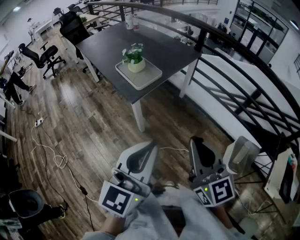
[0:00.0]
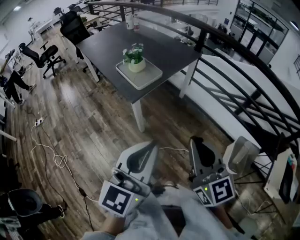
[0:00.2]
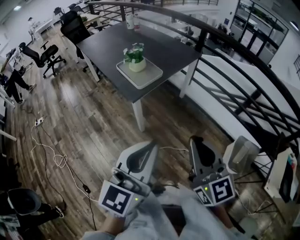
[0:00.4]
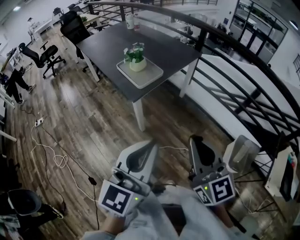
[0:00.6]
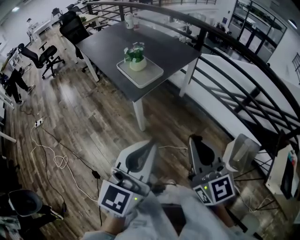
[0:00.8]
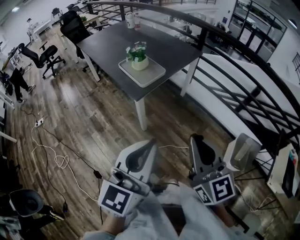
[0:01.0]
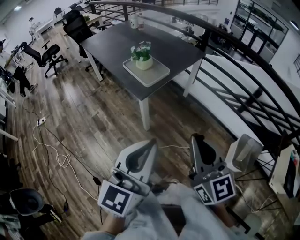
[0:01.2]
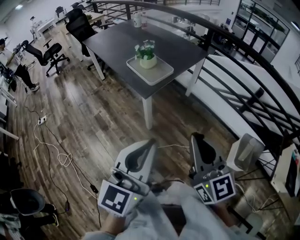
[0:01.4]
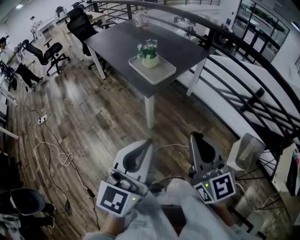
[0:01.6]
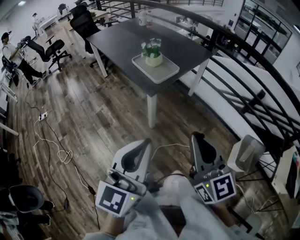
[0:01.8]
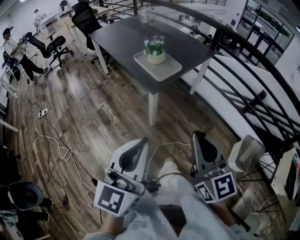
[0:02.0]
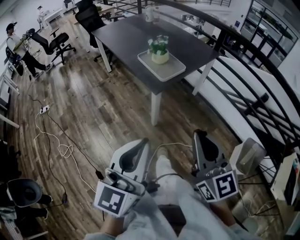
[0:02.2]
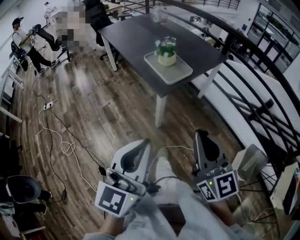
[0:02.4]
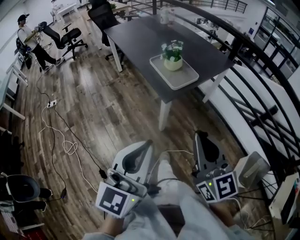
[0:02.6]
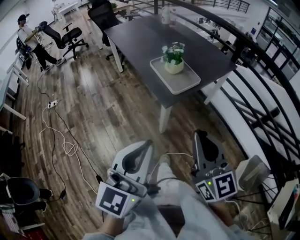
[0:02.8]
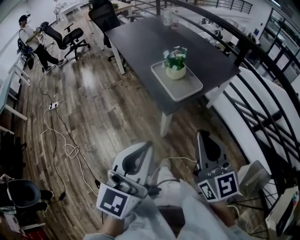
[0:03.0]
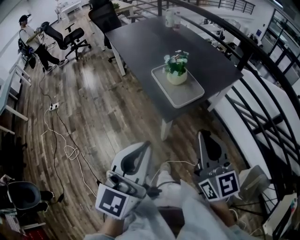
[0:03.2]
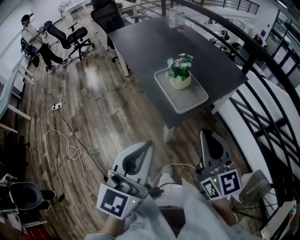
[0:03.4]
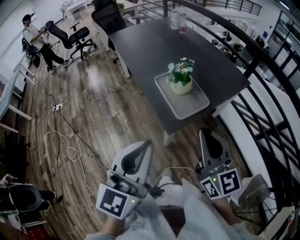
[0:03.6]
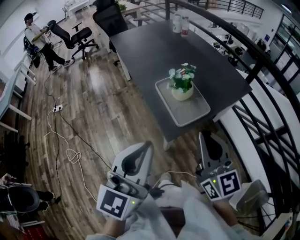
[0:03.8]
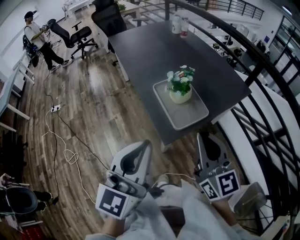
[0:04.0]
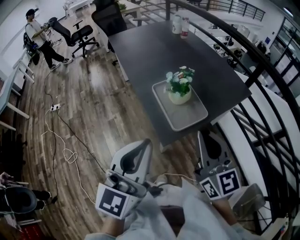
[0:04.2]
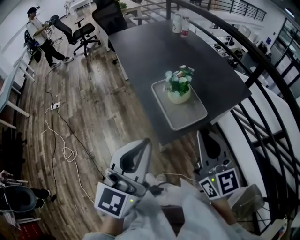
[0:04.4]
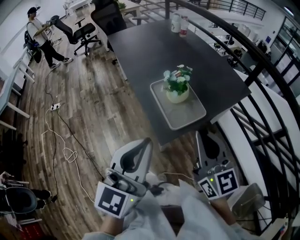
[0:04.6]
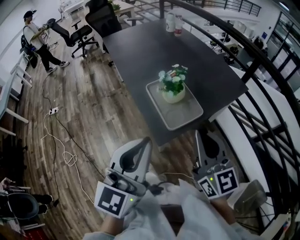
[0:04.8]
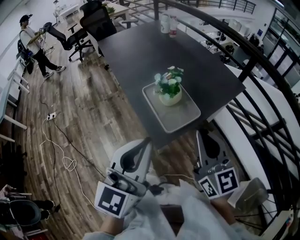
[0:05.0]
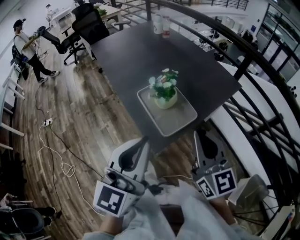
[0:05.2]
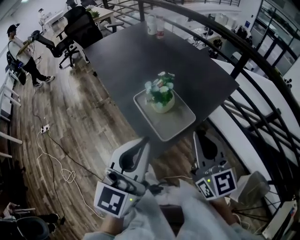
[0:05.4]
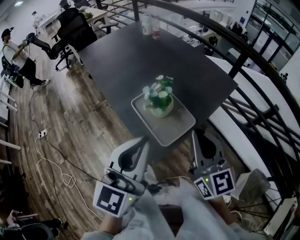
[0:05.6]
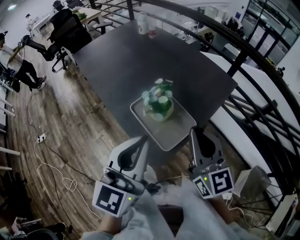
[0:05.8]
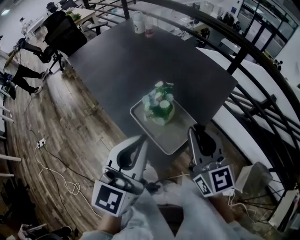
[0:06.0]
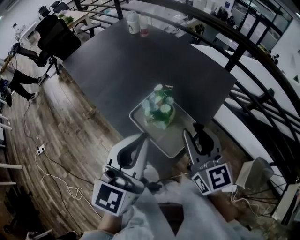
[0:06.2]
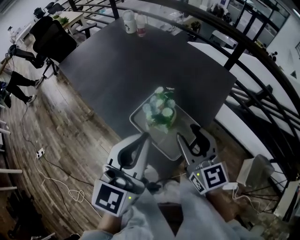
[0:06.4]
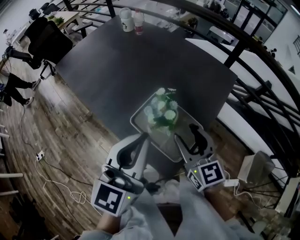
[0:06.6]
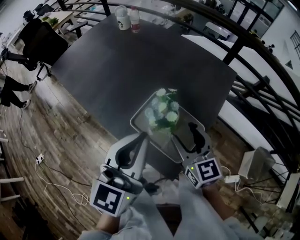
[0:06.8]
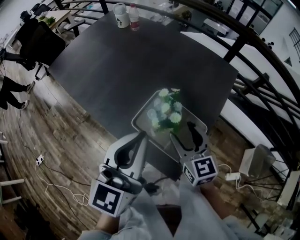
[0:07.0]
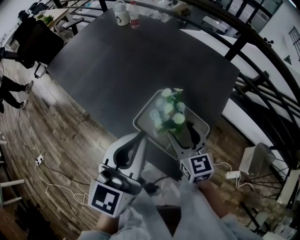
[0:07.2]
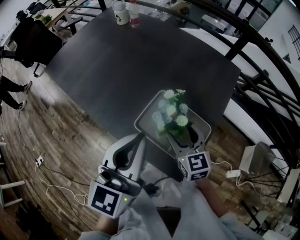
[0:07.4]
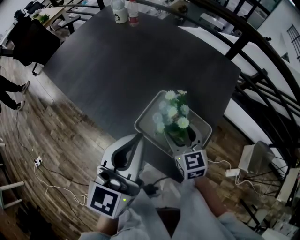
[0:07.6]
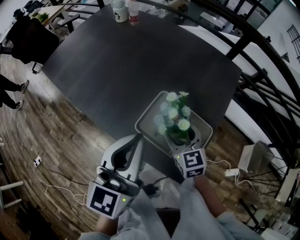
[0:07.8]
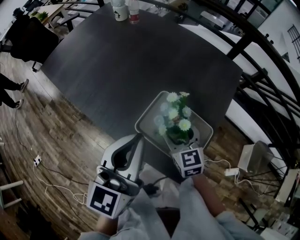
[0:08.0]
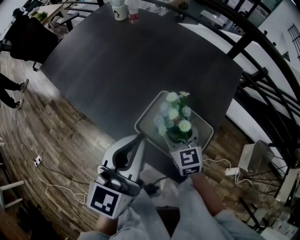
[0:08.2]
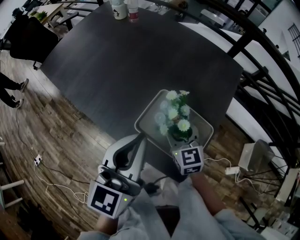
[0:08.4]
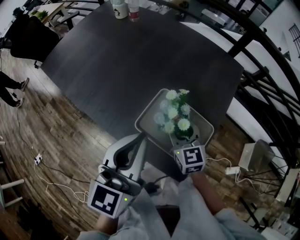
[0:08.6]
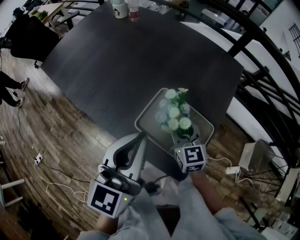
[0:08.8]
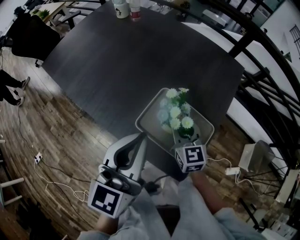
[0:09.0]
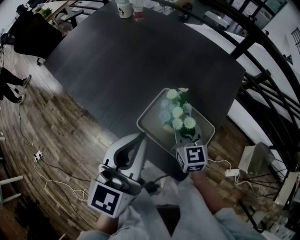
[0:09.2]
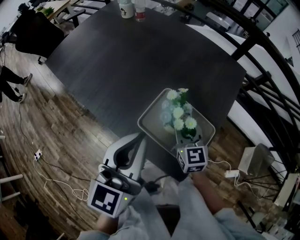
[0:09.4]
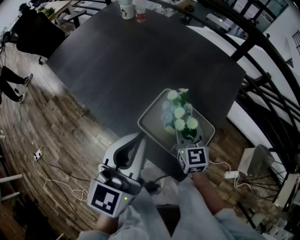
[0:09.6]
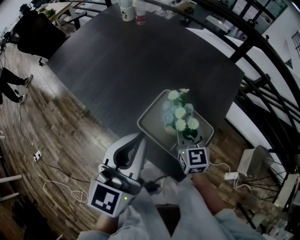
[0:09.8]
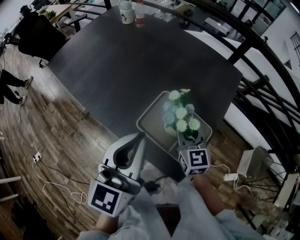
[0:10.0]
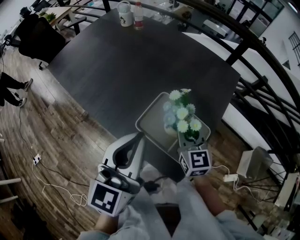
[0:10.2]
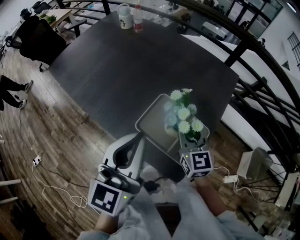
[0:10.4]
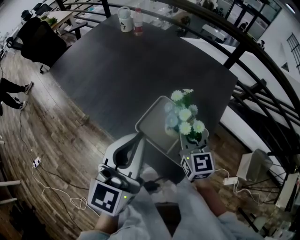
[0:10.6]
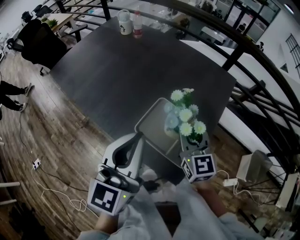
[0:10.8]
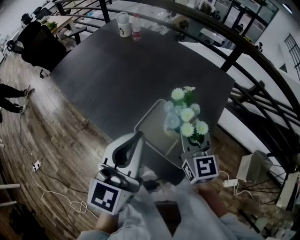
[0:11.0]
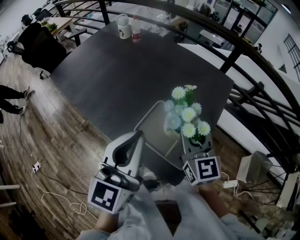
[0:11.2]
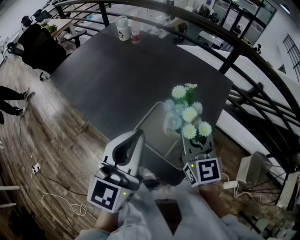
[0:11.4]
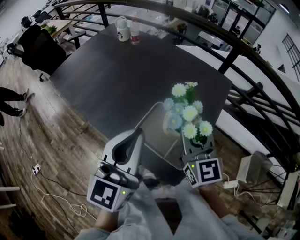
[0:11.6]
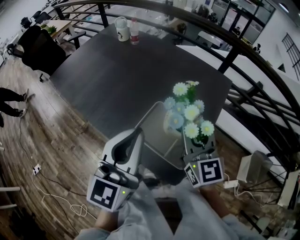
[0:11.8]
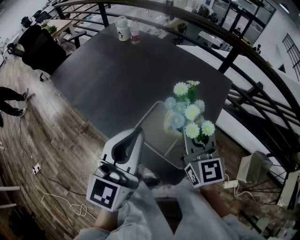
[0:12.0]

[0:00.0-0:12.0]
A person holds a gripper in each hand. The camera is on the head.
0.0 to 1.6 s: Both grippers travel together to the left, about 10 cm.
1.6 to 3.0 s: The two grippers go approximately 15 cm forward.
3.0 to 4.4 s: Both grippers move forward, some 15 cm.
4.4 to 6.0 s: The grippers both shift forward by roughly 15 cm.
6.0 to 7.6 s: The right gripper travels downward, to the left and forward by approximately 25 cm, swivels roughly 30 degrees, and opens its fingers; the left gripper moves forward and to the left, about 15 cm.
7.6 to 9.0 s: The right gripper closes up.
9.0 to 10.4 s: The right gripper shifts approximately 5 cm upward.
10.4 to 12.0 s: The right gripper travels upward by approximately 10 cm.

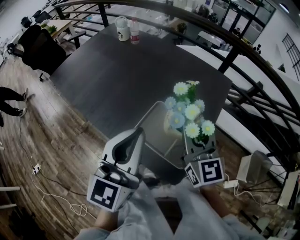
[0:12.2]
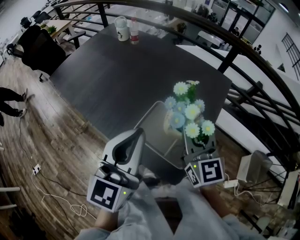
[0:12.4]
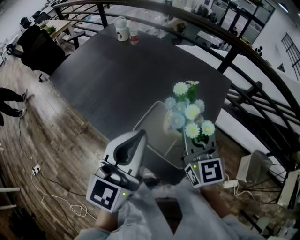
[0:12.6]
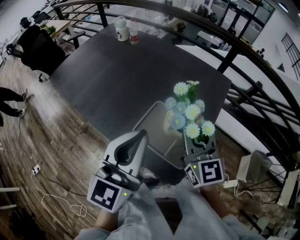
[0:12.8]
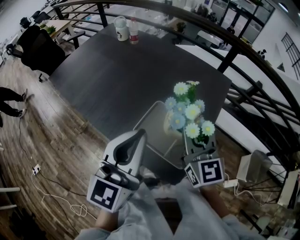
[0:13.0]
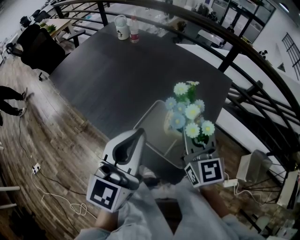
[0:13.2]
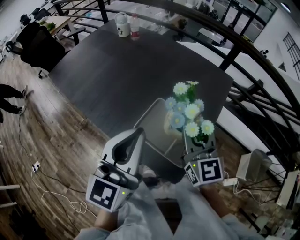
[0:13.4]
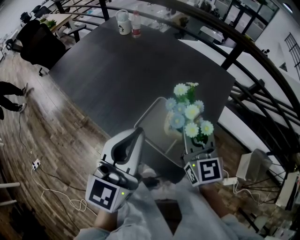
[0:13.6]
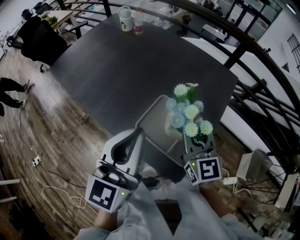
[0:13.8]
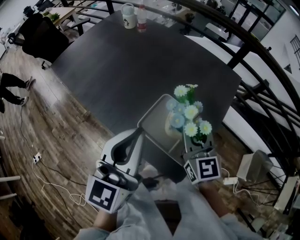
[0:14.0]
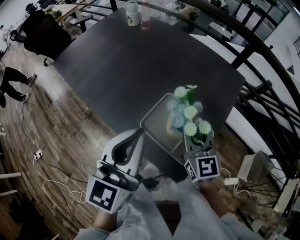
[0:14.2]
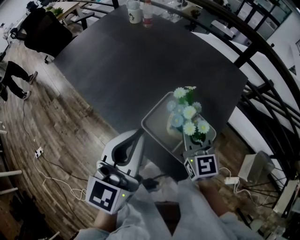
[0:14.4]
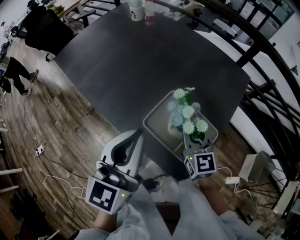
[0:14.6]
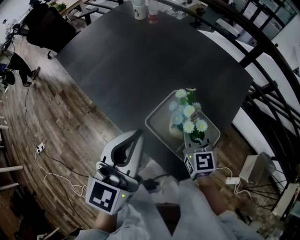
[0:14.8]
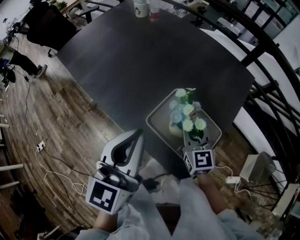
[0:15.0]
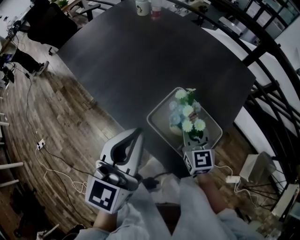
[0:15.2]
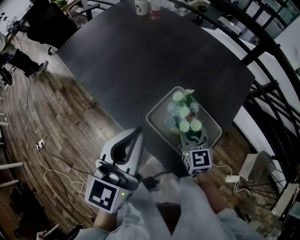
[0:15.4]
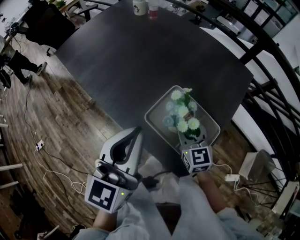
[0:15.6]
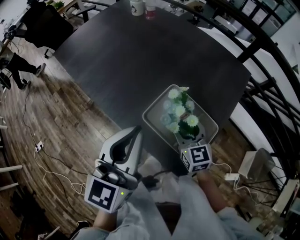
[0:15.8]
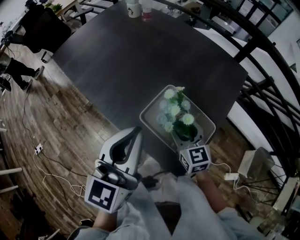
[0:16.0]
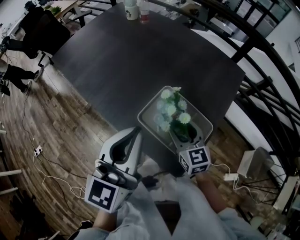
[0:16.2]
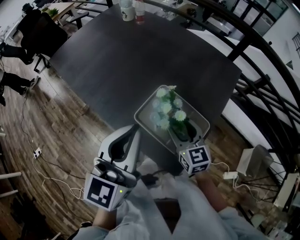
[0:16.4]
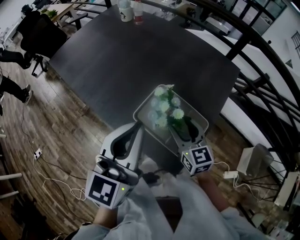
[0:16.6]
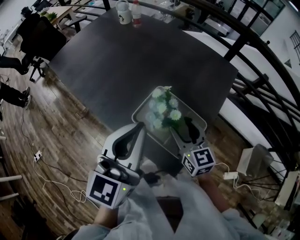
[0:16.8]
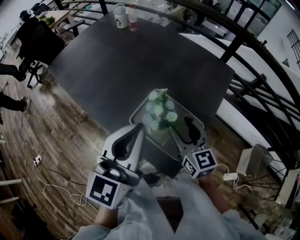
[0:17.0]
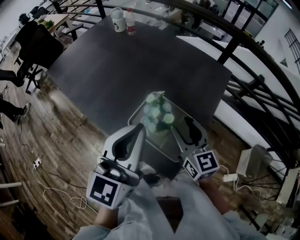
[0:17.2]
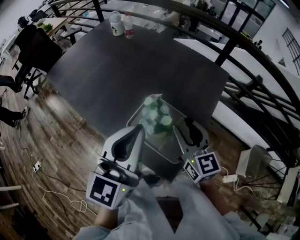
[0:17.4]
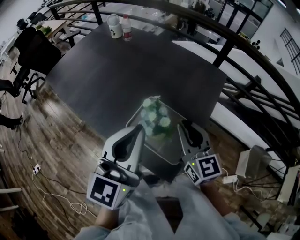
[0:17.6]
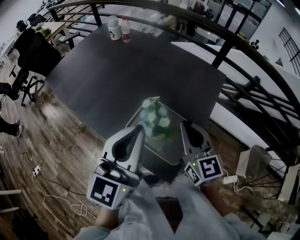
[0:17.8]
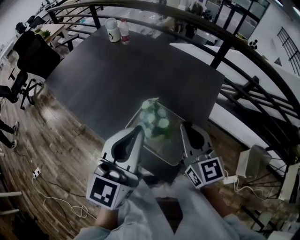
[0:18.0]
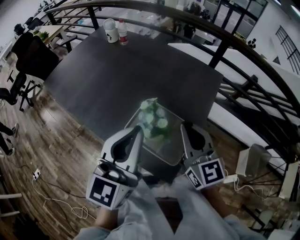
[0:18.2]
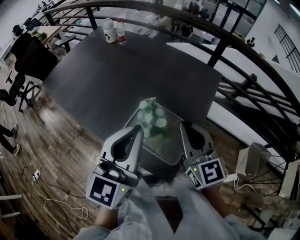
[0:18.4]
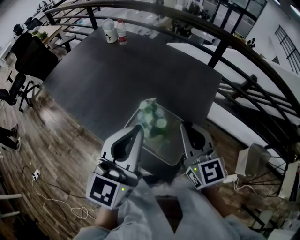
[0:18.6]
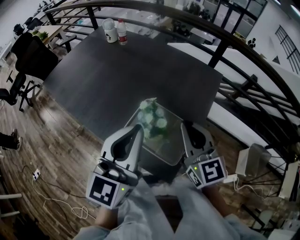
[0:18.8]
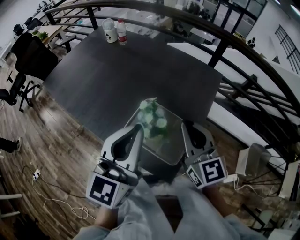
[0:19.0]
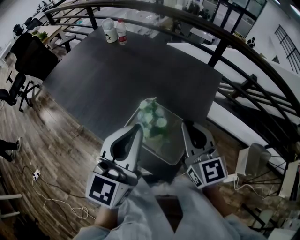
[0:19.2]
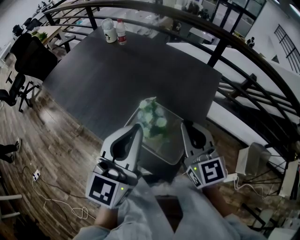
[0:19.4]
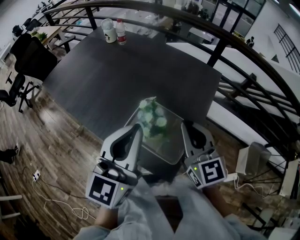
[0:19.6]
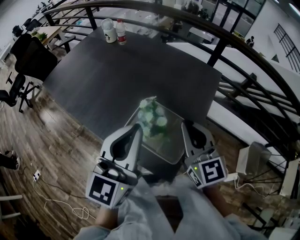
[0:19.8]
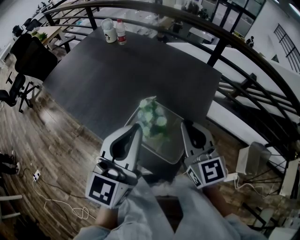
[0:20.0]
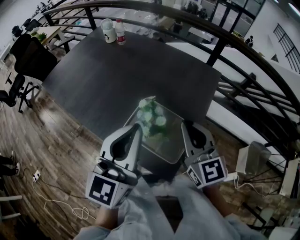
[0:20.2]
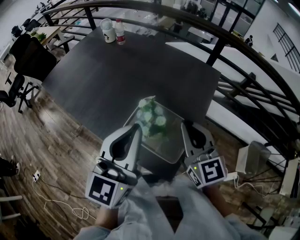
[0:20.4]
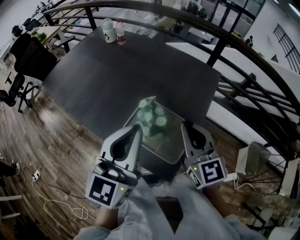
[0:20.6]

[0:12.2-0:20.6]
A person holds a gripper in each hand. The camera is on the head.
12.2 to 13.6 s: The grippers make only small movements.
13.6 to 15.0 s: The right gripper moves downward, roughly 15 cm; the left gripper shifts by about 5 cm.
15.0 to 16.4 s: The right gripper opens.
16.4 to 17.8 s: The left gripper changes place by about 5 cm, while the right gripper shifts approximately 15 cm upward and to the right, and closes its fingers.
17.8 to 19.2 s: The grippers stay close to where they were, moving slightly.
19.2 to 20.6 s: The two grippers keep their place.

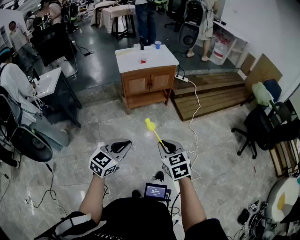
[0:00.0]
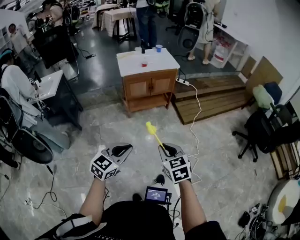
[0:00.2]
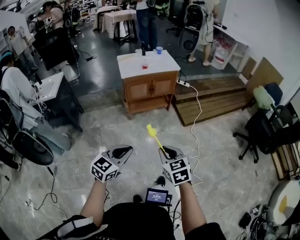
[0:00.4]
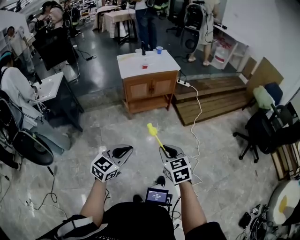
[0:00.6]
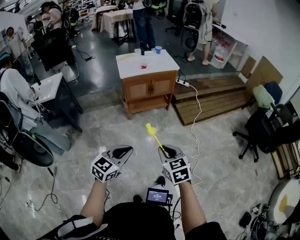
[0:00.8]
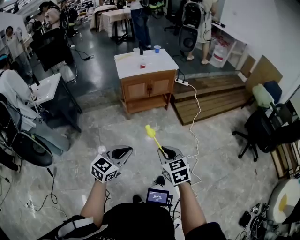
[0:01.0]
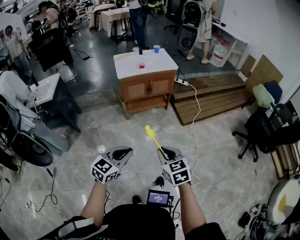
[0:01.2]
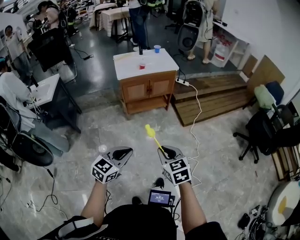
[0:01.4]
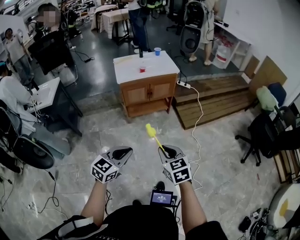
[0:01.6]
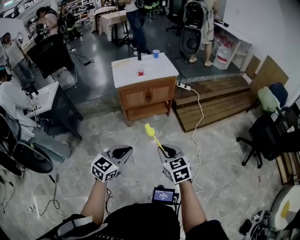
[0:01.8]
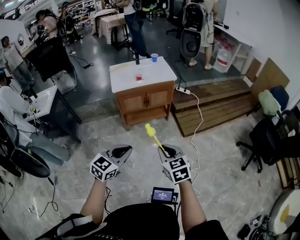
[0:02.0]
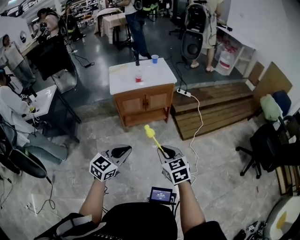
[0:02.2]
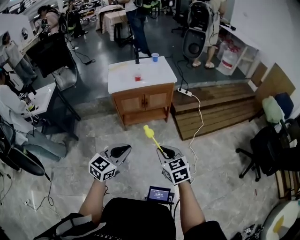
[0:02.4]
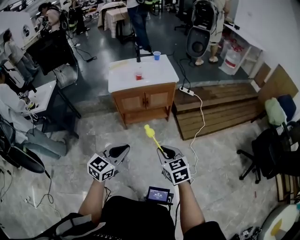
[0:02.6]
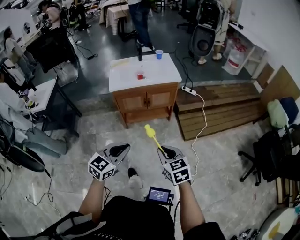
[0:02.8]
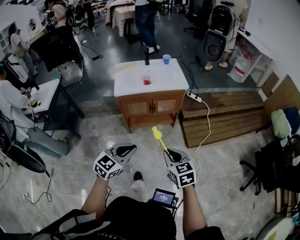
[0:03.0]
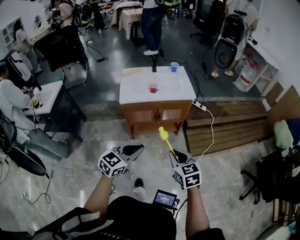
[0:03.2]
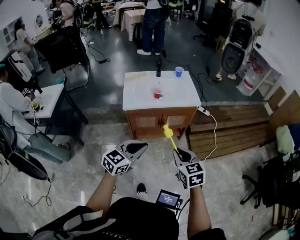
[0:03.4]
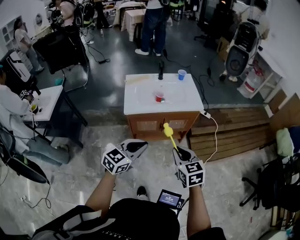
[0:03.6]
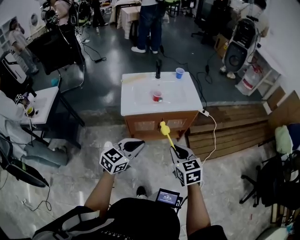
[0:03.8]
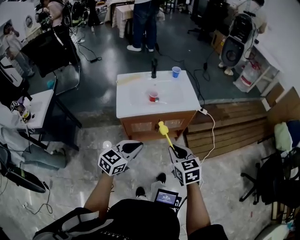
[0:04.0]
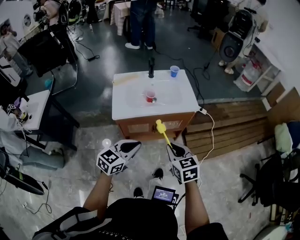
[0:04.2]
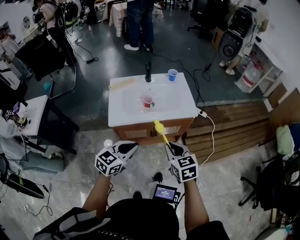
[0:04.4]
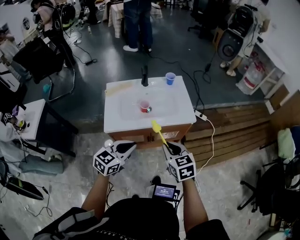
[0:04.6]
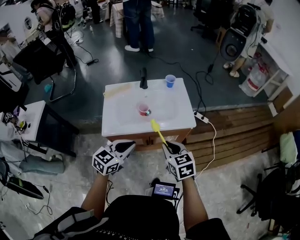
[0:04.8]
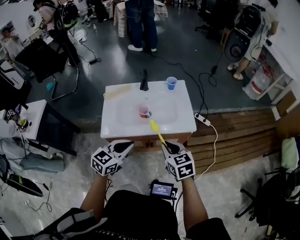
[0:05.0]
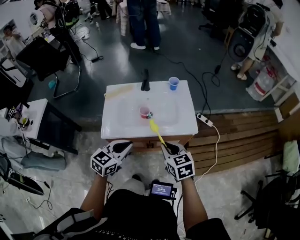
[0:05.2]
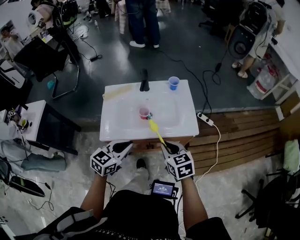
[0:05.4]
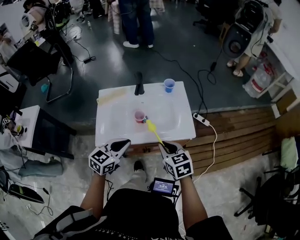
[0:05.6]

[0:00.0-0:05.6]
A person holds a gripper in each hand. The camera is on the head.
0.0 to 1.4 s: The grippers move only a little.
1.4 to 2.8 s: Both grippers move forward, some 25 cm.
2.8 to 4.2 s: Both grippers move forward, approximately 30 cm.
4.2 to 5.6 s: The grippers both shift forward by roughly 25 cm.
